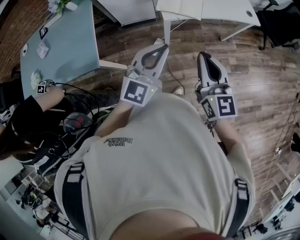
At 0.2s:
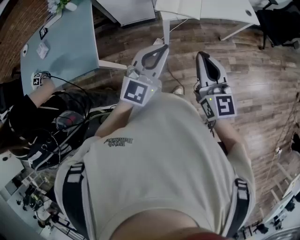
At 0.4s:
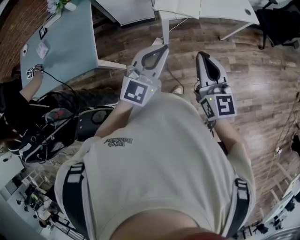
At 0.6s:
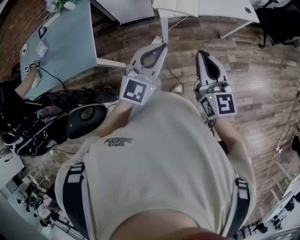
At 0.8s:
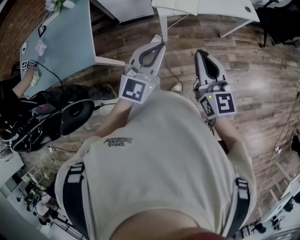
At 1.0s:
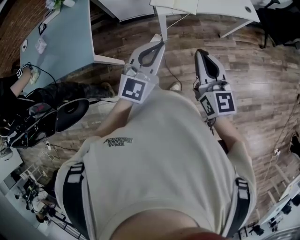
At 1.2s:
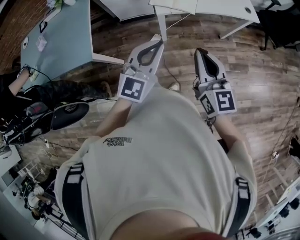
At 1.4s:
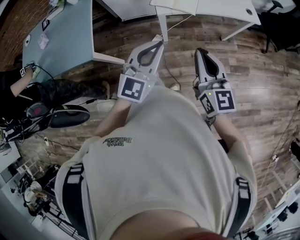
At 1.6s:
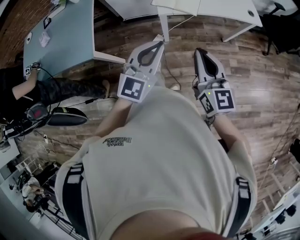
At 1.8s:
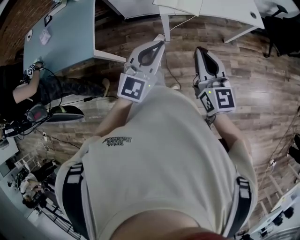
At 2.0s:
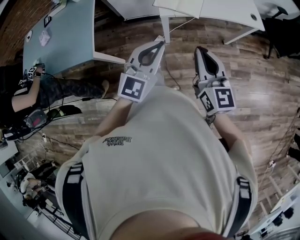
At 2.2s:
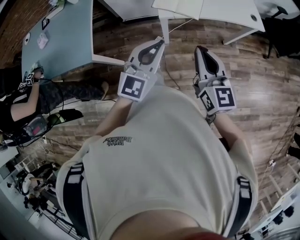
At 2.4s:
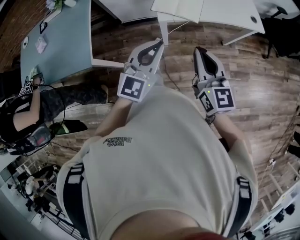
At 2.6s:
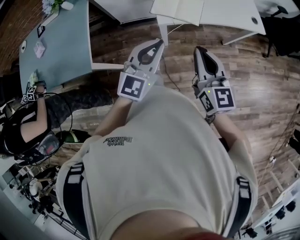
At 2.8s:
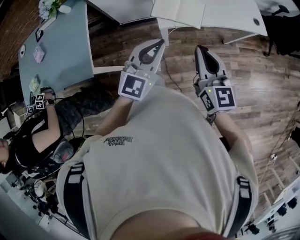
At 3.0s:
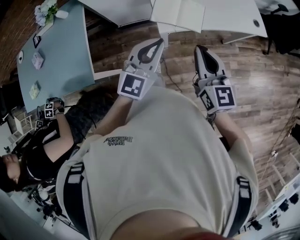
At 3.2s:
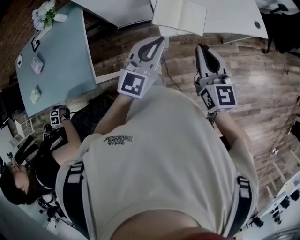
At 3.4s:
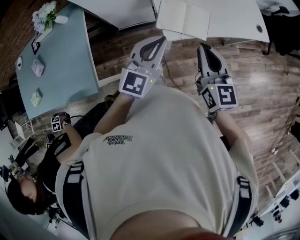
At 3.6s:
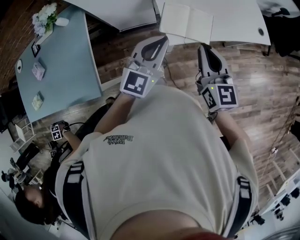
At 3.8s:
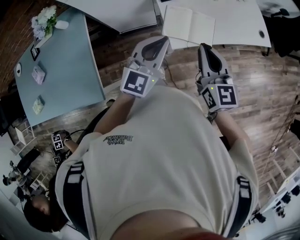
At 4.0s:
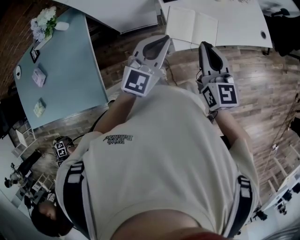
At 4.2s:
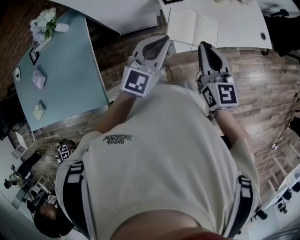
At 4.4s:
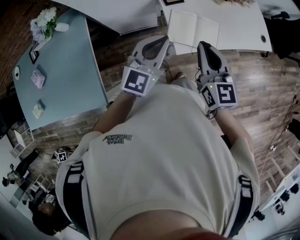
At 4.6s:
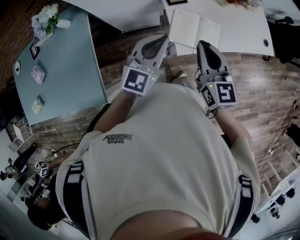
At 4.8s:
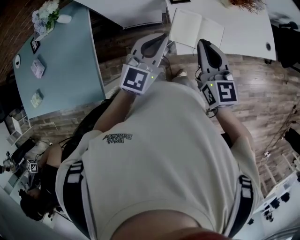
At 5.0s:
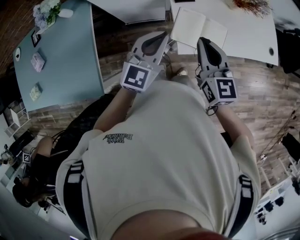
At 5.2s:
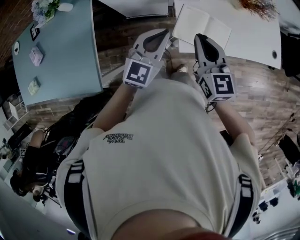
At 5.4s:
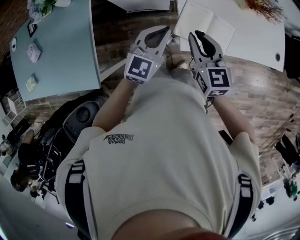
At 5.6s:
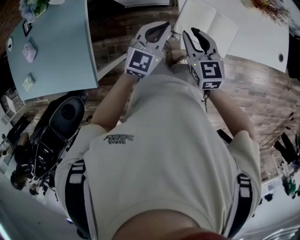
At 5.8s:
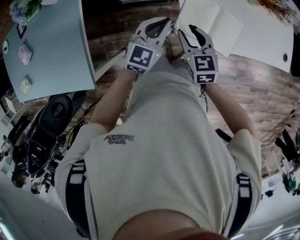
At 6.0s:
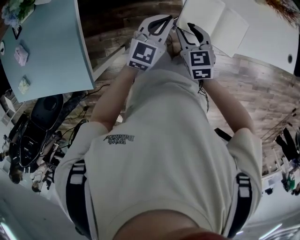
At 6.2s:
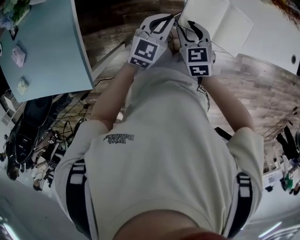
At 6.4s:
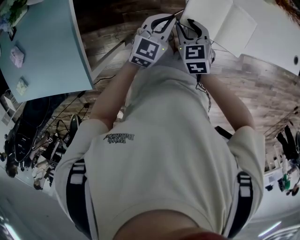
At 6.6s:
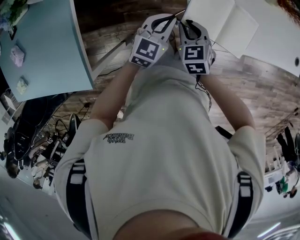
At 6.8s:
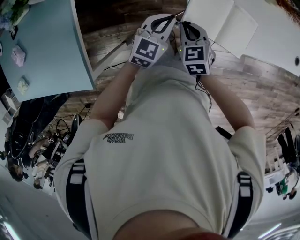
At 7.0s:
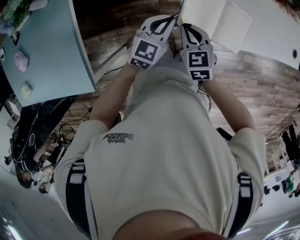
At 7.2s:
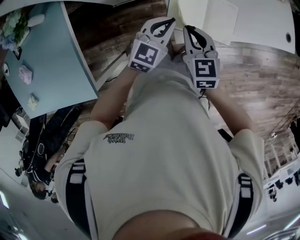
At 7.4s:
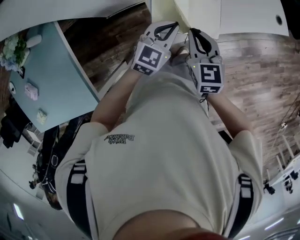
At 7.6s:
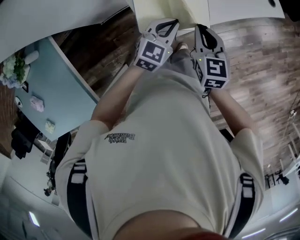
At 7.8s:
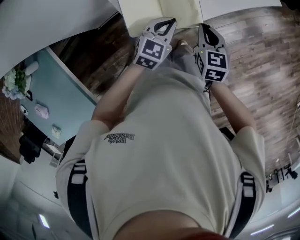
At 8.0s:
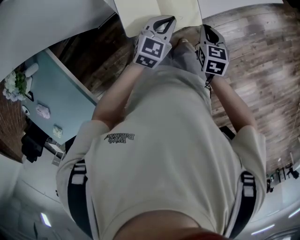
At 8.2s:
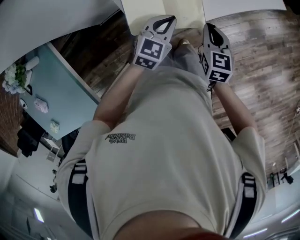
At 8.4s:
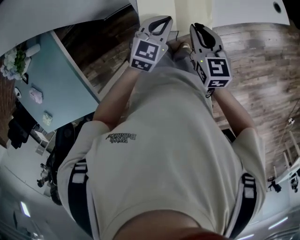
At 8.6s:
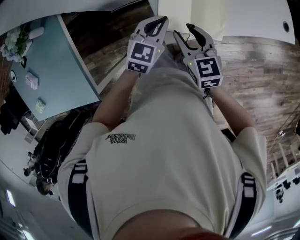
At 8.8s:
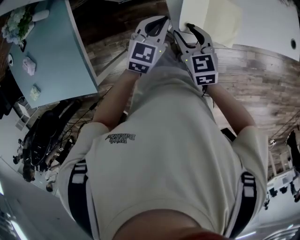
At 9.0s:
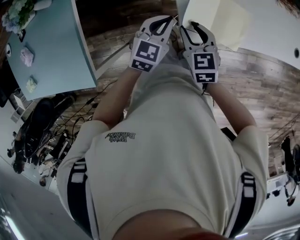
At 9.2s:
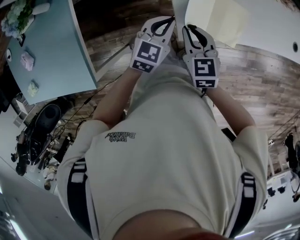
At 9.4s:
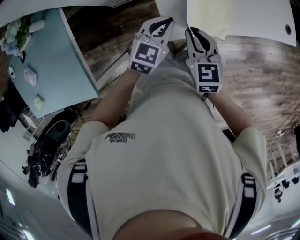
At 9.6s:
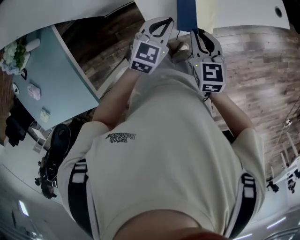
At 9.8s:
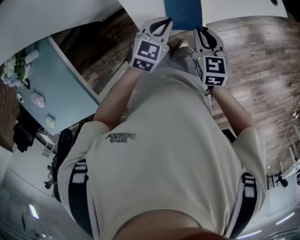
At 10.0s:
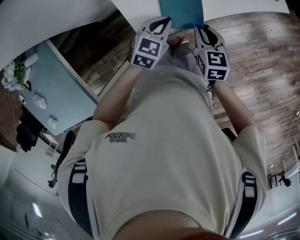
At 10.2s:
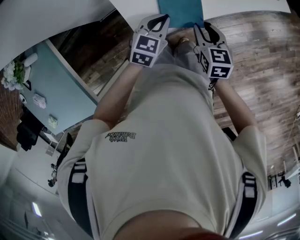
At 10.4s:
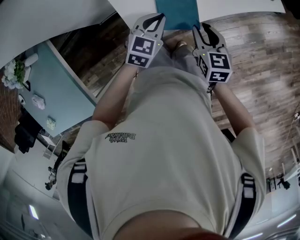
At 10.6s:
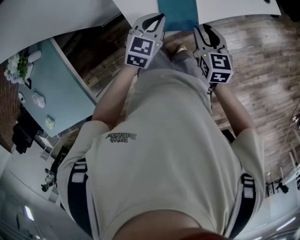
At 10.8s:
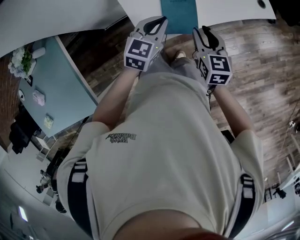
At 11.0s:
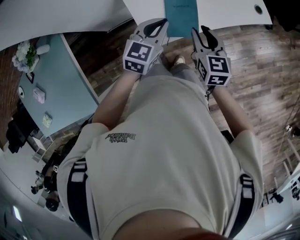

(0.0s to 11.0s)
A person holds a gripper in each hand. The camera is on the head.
0.0s - 1.6s: The two grippers go some 5 cm to the right.
1.6s - 3.2s: The two grippers go approximately 20 cm forward.
3.2s - 4.8s: Both grippers travel together forward and to the left, approximately 15 cm.
4.8s - 6.2s: The grippers both shift downward by about 25 cm. The right gripper tilts its fingers approximately 30 degrees downward, and opens.
6.2s - 7.8s: The left gripper ends up some 20 cm from where it was, and changes its angle by some 30 degrees, while the right gripper goes upward and returns, some 10 cm each way, swivels roughly 40 degrees, and closes.
7.8s - 9.4s: The left gripper shifts by about 15 cm. Meanwhile the right gripper swings up and down, approximately 10 cm each way, with 3 reversals, swivels some 30 degrees, and opens and closes again.
9.4s - 11.0s: The left gripper heads upward and to the right, covering some 10 cm. Meanwhile the right gripper goes approximately 15 cm to the right and upward, and opens up.

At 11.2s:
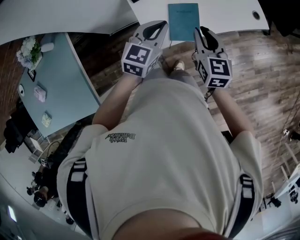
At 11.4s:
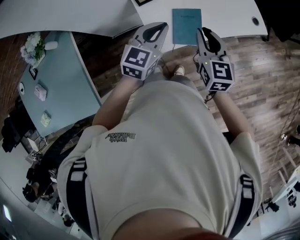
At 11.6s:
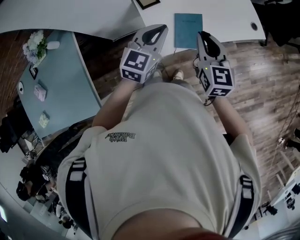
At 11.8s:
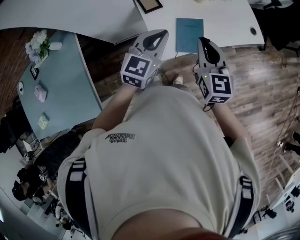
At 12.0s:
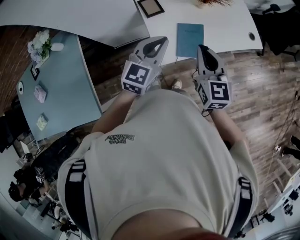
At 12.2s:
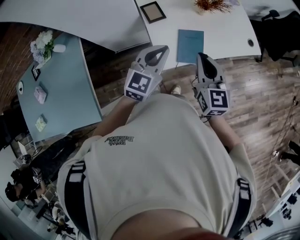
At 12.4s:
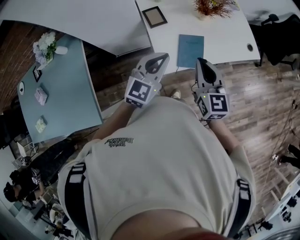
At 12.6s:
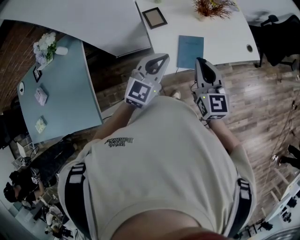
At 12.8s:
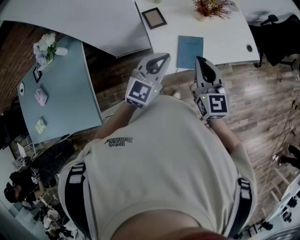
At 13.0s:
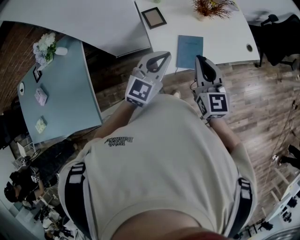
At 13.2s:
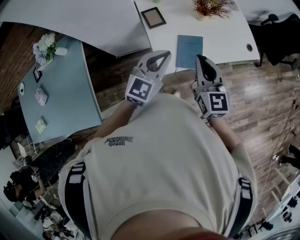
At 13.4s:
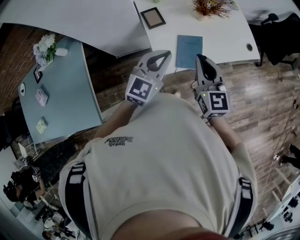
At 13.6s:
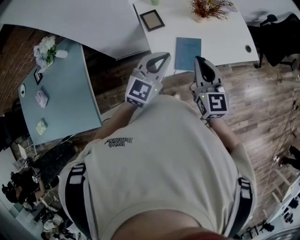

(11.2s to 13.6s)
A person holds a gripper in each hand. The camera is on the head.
11.2s - 12.4s: The left gripper heads upward and backward, covering approximately 10 cm; the right gripper moves upward, roughly 10 cm.
12.4s - 13.6s: The grippers move only a little.

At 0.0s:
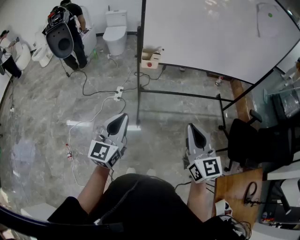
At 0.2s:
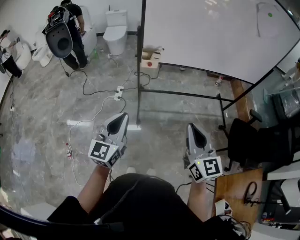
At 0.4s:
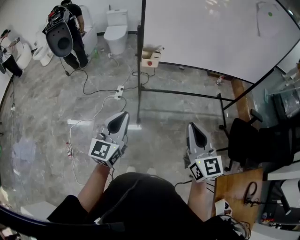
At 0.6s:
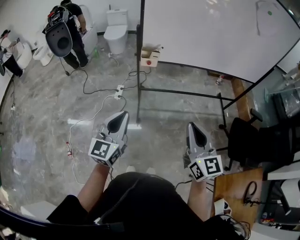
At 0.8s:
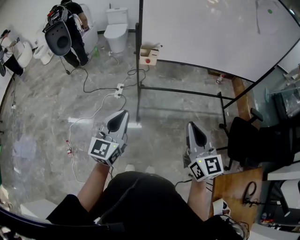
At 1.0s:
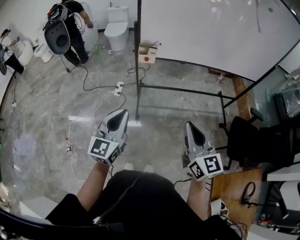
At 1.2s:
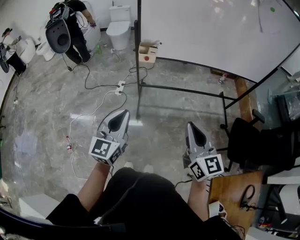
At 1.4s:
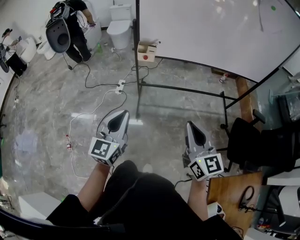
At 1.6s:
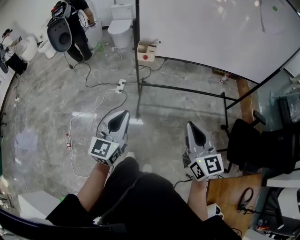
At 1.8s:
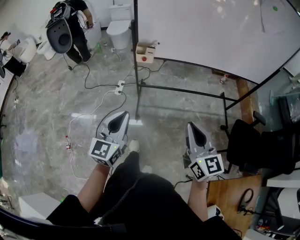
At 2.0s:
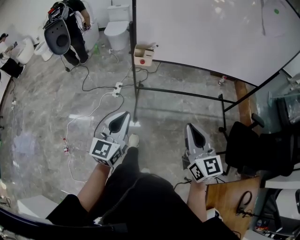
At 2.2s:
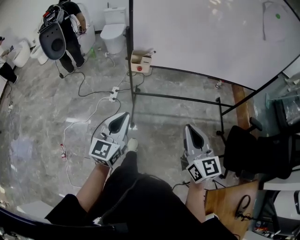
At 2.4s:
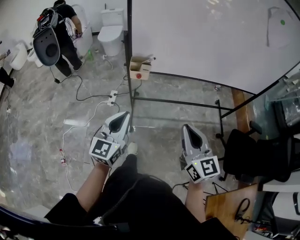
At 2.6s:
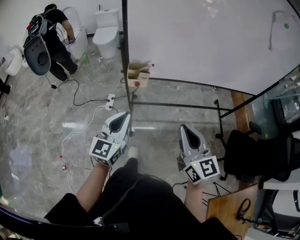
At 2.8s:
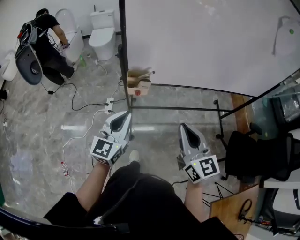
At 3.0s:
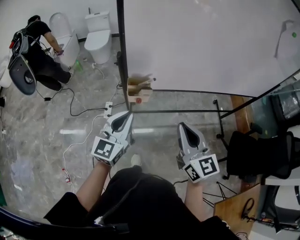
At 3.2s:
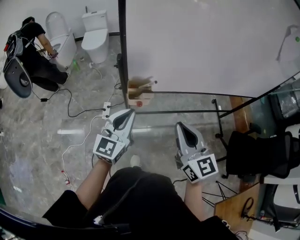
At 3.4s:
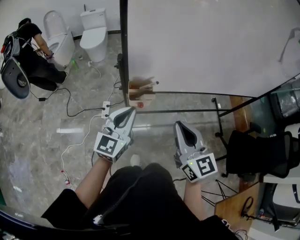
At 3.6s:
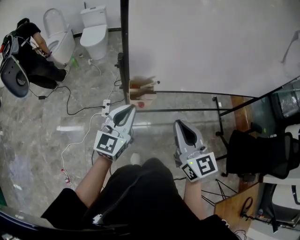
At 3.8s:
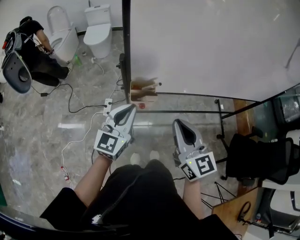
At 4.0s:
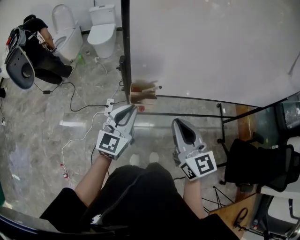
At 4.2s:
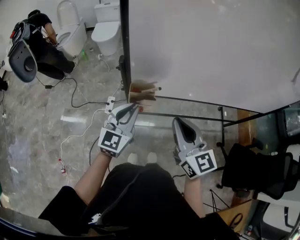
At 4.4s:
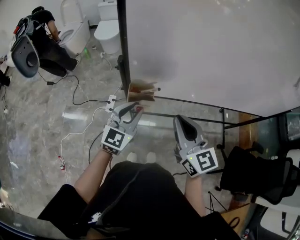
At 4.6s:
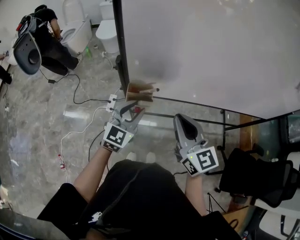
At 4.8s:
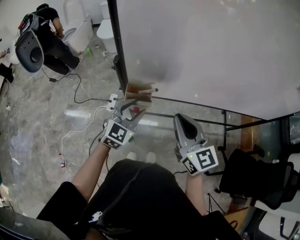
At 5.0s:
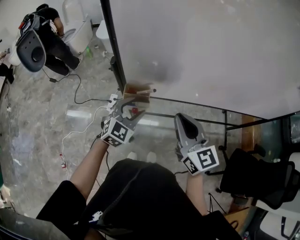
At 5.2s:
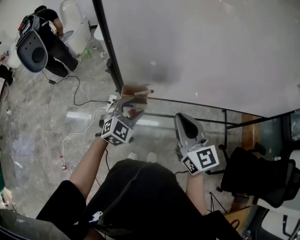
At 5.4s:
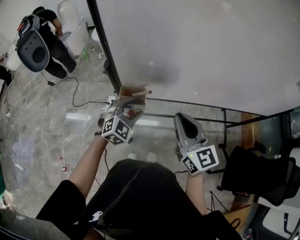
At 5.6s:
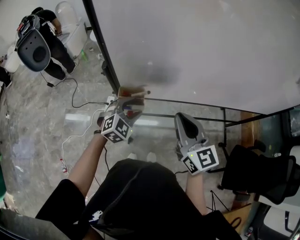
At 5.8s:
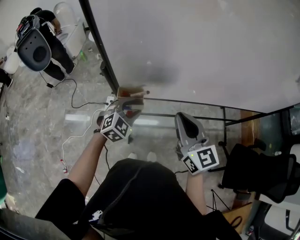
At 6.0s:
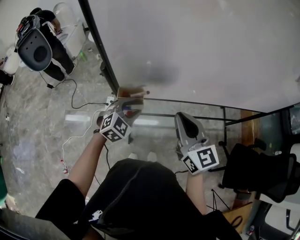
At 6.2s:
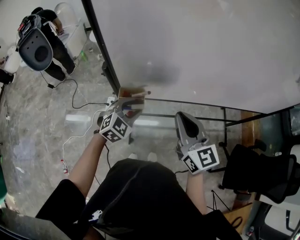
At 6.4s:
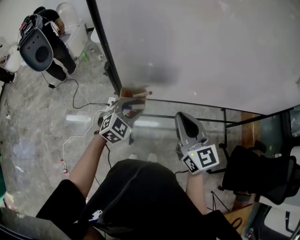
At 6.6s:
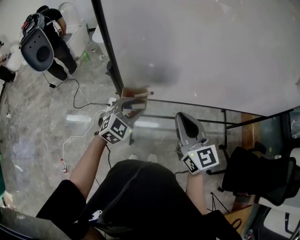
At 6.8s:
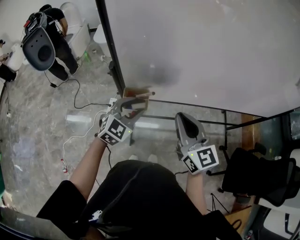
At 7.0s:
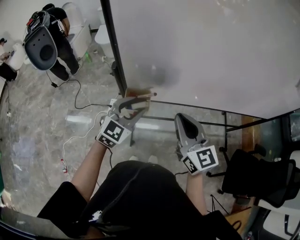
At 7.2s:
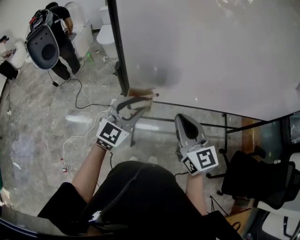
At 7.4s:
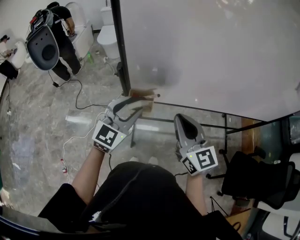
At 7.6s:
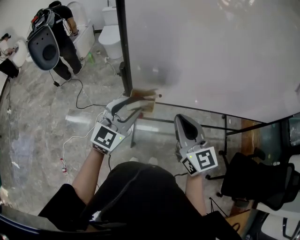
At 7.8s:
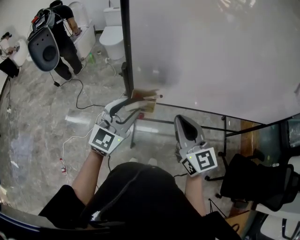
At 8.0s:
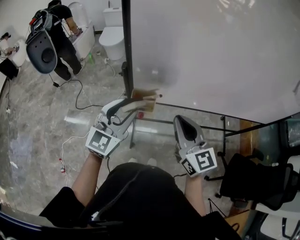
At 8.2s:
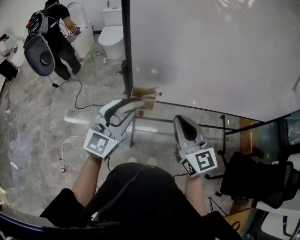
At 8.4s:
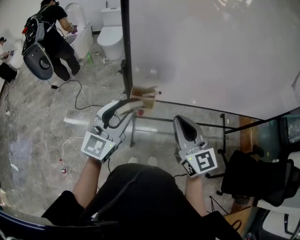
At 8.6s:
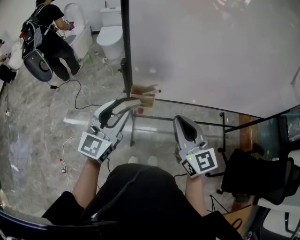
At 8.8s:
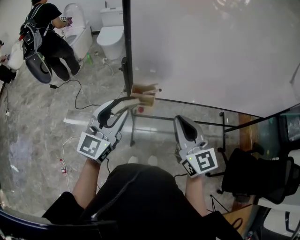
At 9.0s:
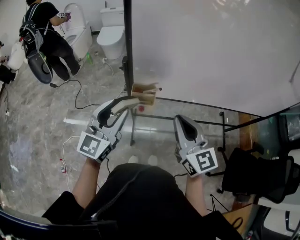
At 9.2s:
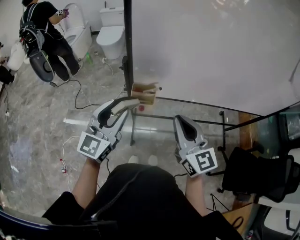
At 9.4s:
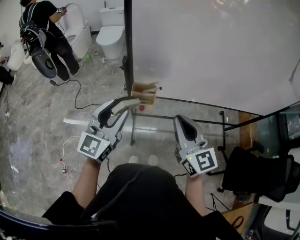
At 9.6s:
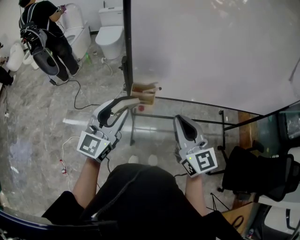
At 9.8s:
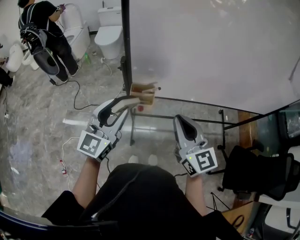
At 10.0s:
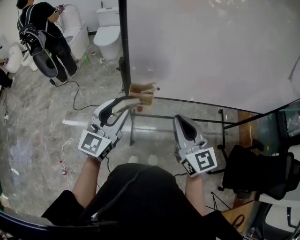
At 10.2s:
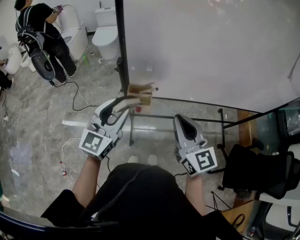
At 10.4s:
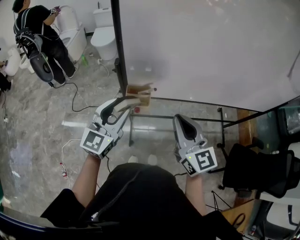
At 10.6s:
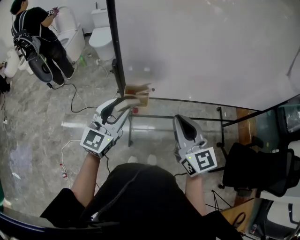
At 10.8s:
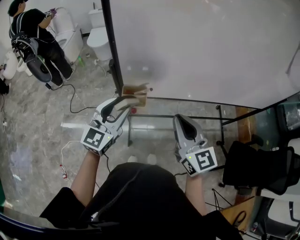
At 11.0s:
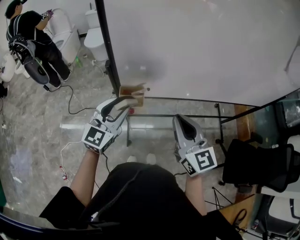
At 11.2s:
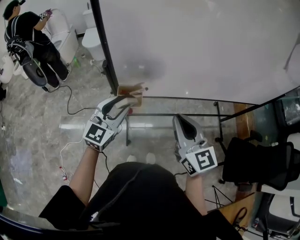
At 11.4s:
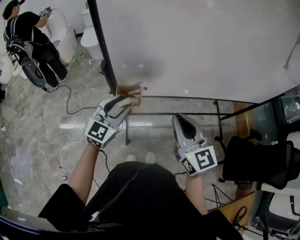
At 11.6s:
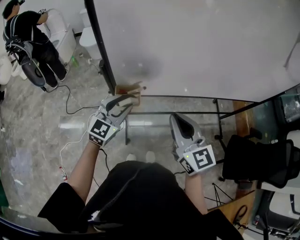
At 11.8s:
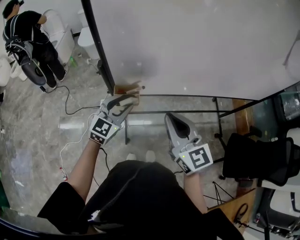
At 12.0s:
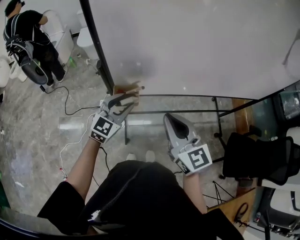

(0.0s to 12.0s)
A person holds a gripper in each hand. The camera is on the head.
0.0s - 1.6s: The two grippers go roughly 5 cm to the right.
1.6s - 3.0s: The two grippers go some 30 cm forward.
3.0s - 4.4s: Both grippers travel together forward, roughly 10 cm. The left gripper opens.
4.4s - 6.0s: The left gripper heads downward and forward, covering about 10 cm, rotates roughly 40 degrees, and opens up. Meanwhile the right gripper is displaced to the right by some 5 cm.
6.0s - 7.6s: The right gripper ends up approximately 5 cm from where it was. The left gripper heads upward, covering some 15 cm, and rotates roughly 30 degrees.
7.6s - 9.0s: The left gripper is displaced backward by some 5 cm.
9.0s - 10.4s: The grippers stay close to where they were, moving slightly.
10.4s - 12.0s: The left gripper shifts some 10 cm downward, forward and to the right, and rotates approximately 20 degrees.
